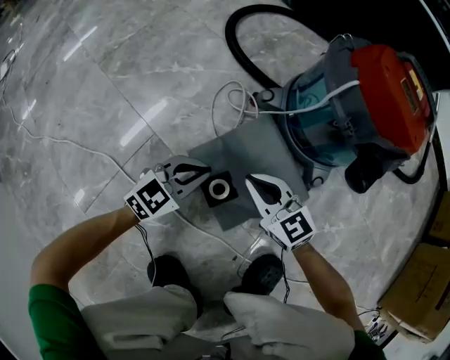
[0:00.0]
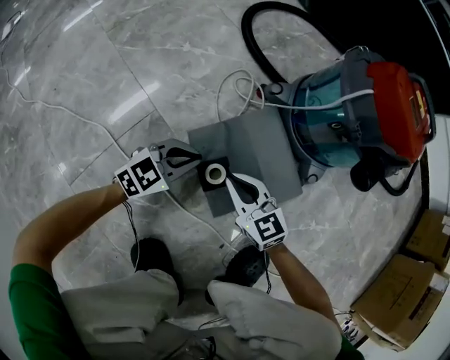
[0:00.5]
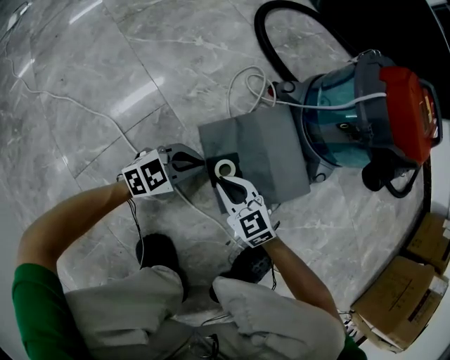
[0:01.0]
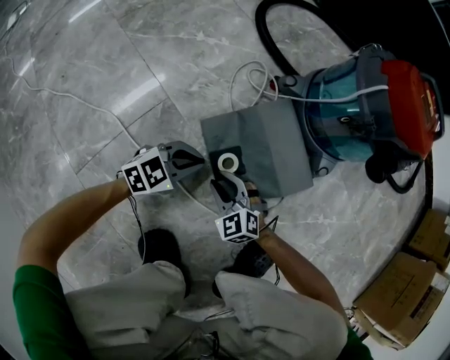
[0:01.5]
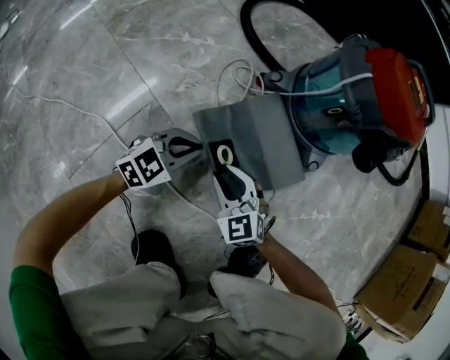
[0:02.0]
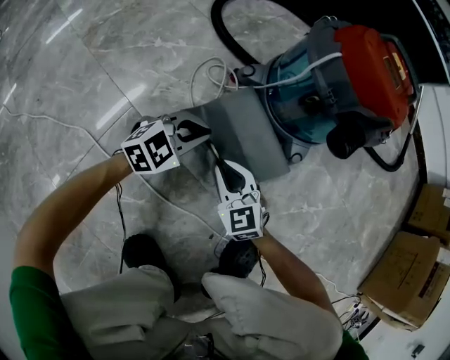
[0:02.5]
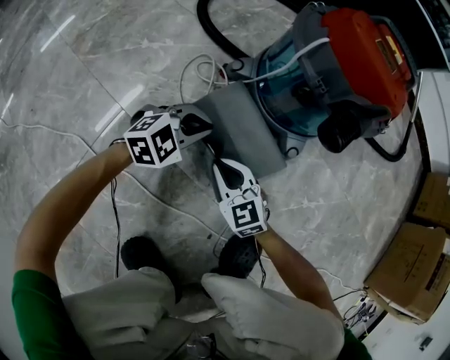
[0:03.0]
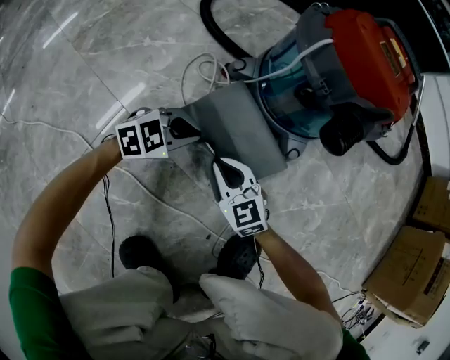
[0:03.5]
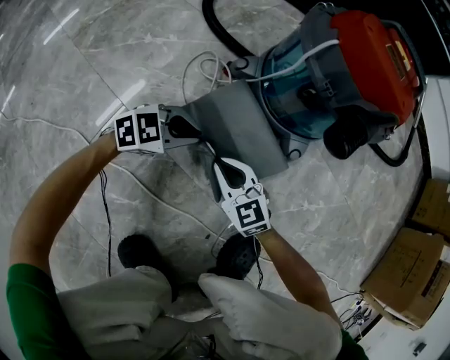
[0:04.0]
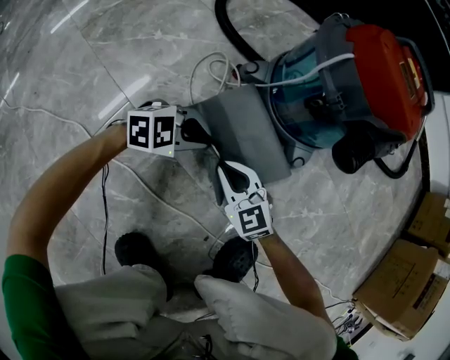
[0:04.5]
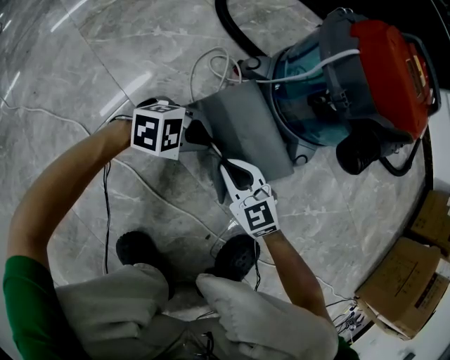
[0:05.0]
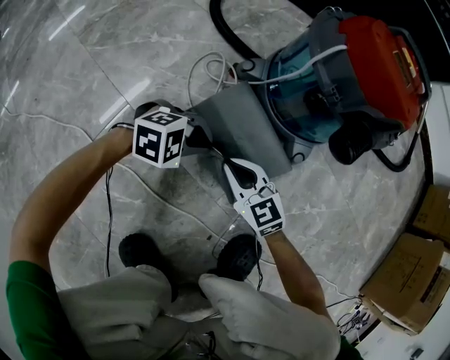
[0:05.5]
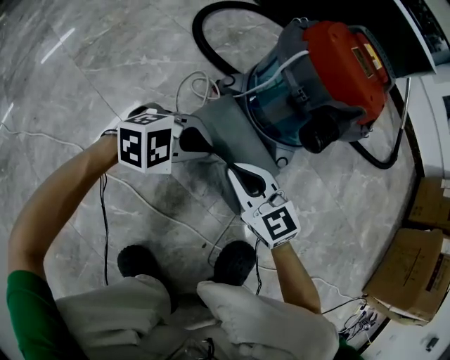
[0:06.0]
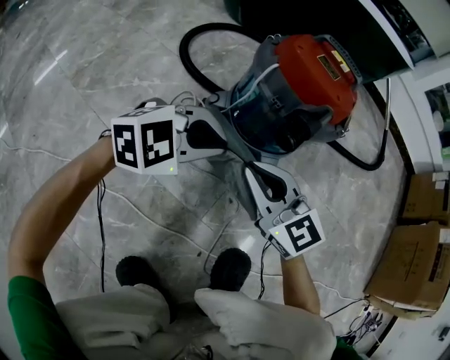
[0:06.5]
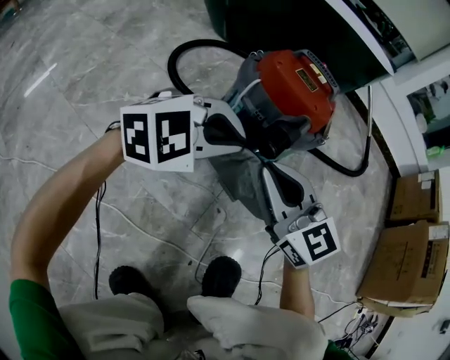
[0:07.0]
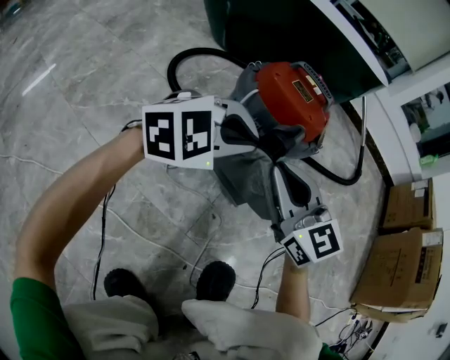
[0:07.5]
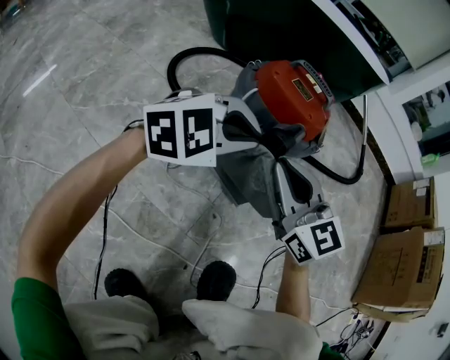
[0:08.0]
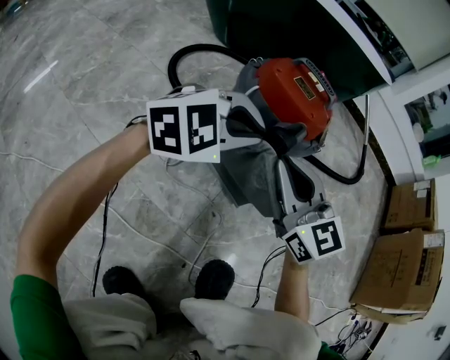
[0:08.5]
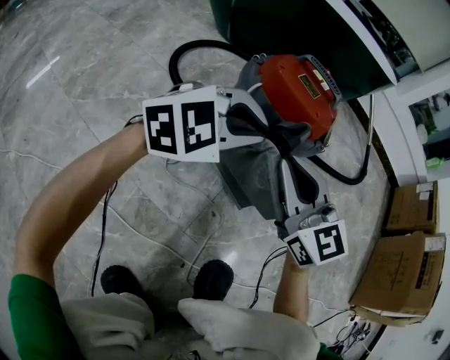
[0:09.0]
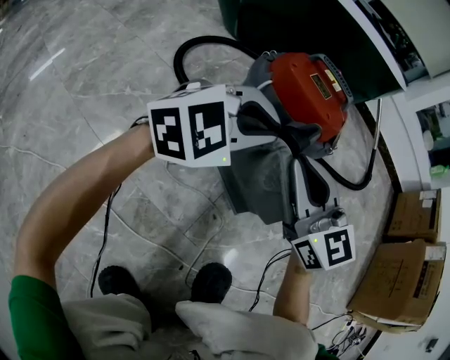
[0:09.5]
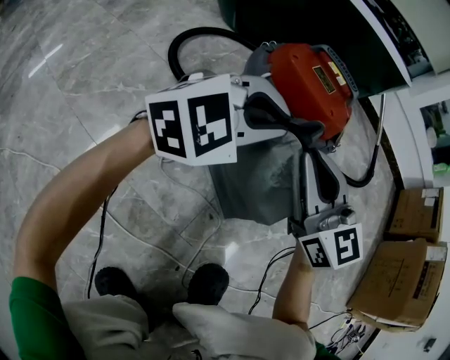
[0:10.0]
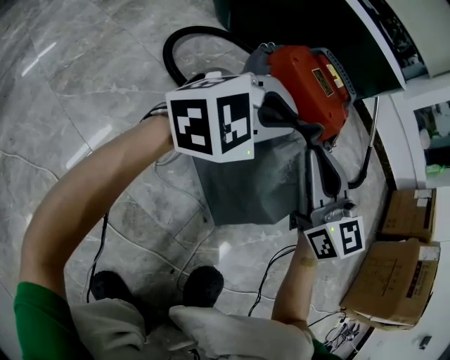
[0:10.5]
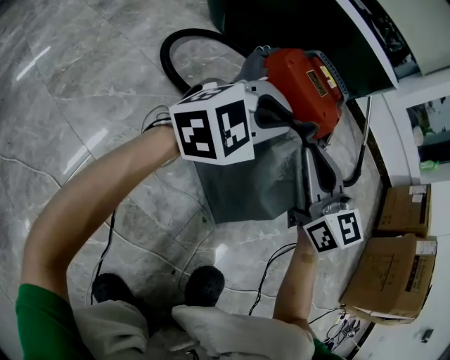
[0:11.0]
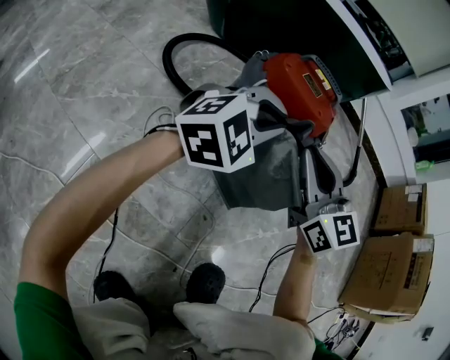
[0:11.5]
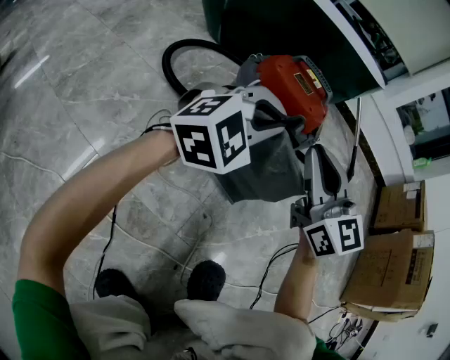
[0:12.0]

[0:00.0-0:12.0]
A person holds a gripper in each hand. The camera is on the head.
0:00.0 to 0:02.0: The right gripper rotates roughly 20 degrees, and opens.
0:02.0 to 0:04.0: The right gripper moves roughly 10 cm, and closes. The left gripper changes place by about 10 cm, and swivels about 20 degrees.
0:04.0 to 0:06.0: Both grippers travel together upward, approximately 10 cm. The left gripper rotates roughly 20 degrees.
0:06.0 to 0:08.0: Both grippers travel together upward, roughly 20 cm. The right gripper changes its angle by about 20 degrees, while the left gripper changes its angle by roughly 20 degrees.
0:08.0 to 0:10.0: The left gripper changes place by some 5 cm; the right gripper moves approximately 5 cm.
0:10.0 to 0:12.0: The right gripper moves some 5 cm.

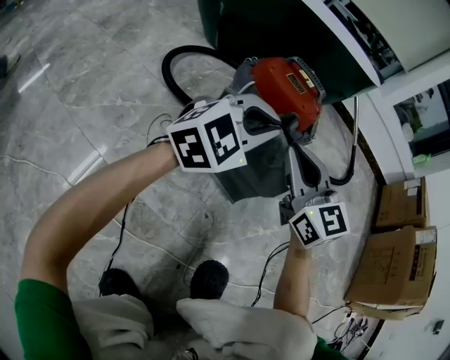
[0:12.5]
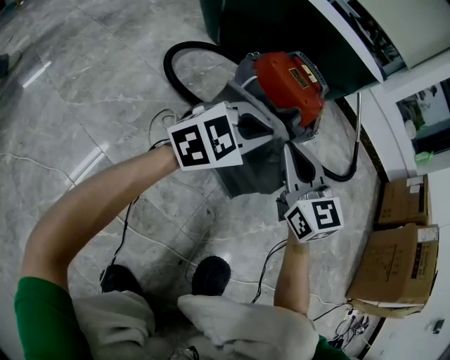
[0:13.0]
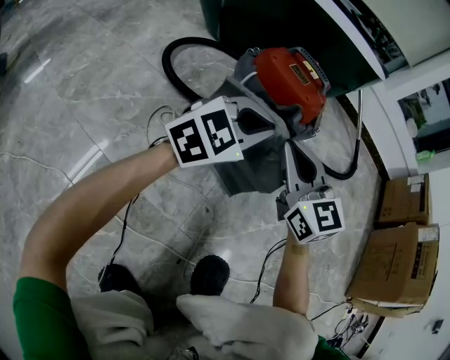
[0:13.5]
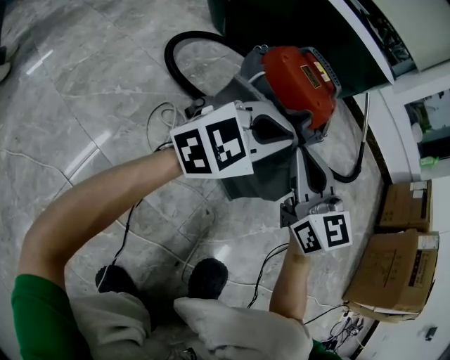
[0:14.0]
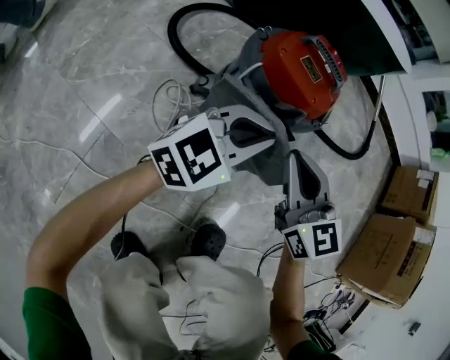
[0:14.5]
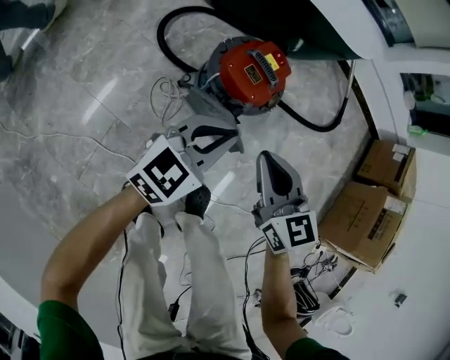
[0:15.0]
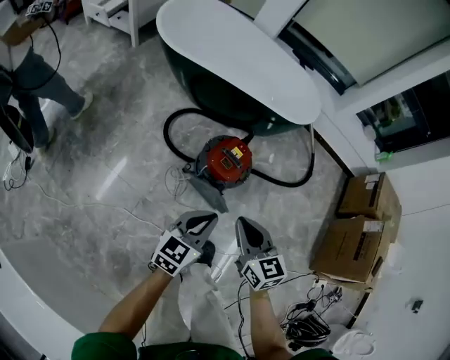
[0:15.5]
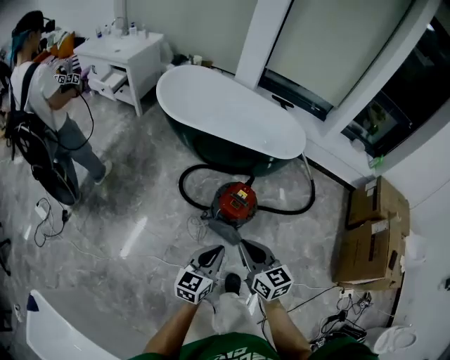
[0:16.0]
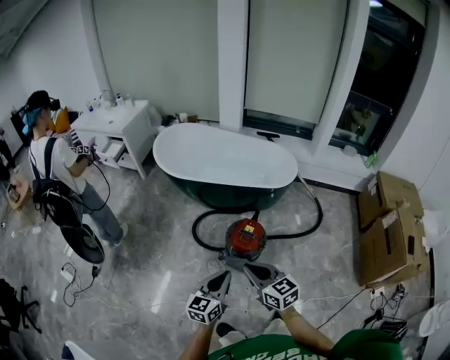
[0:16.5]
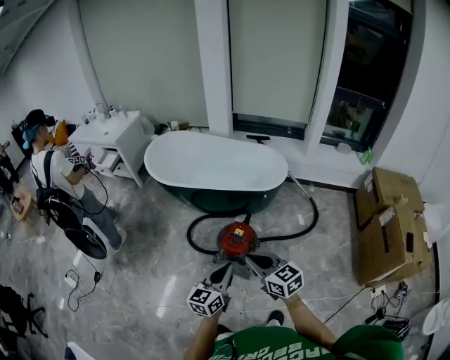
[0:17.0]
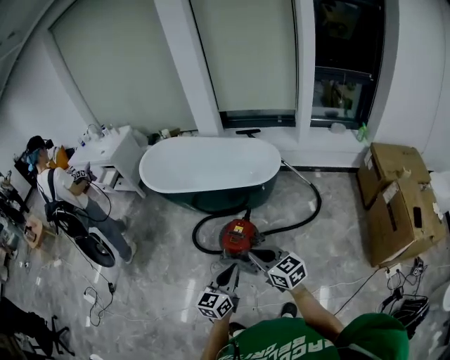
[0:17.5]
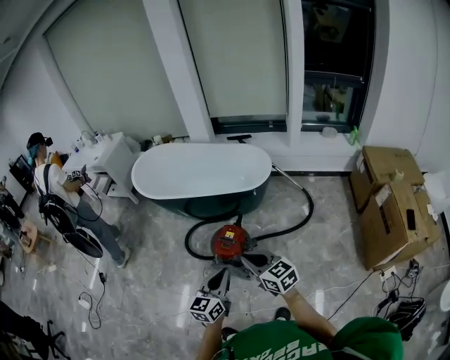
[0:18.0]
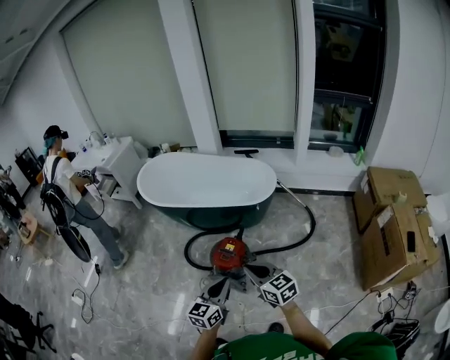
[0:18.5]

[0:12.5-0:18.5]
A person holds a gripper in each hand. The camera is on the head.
0:12.5 to 0:14.5: There are only small adjustments of the grippers.
0:14.5 to 0:16.5: The grippers both shift upward by some 60 cm. The left gripper turns by approximately 30 degrees.
0:16.5 to 0:18.5: The grippers both shift to the right by roughly 20 cm.

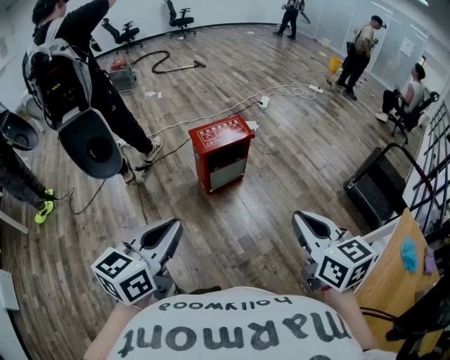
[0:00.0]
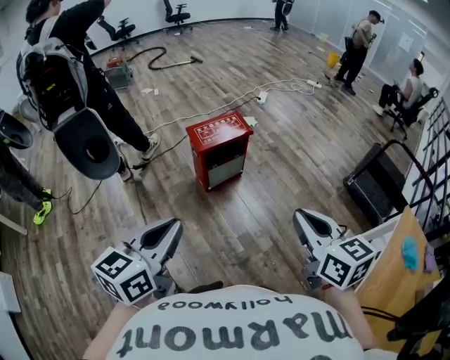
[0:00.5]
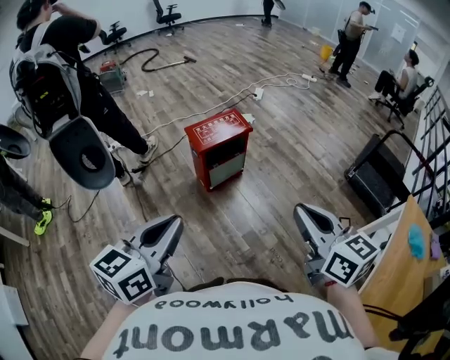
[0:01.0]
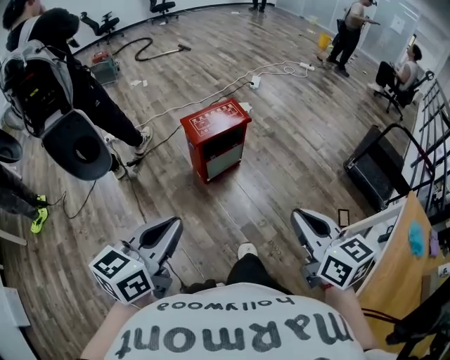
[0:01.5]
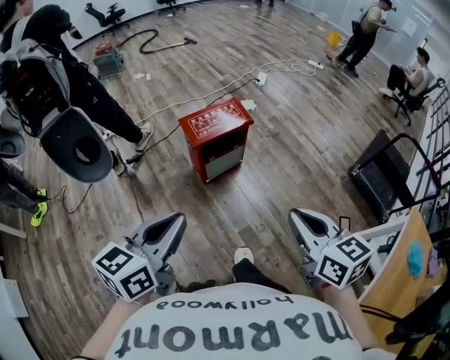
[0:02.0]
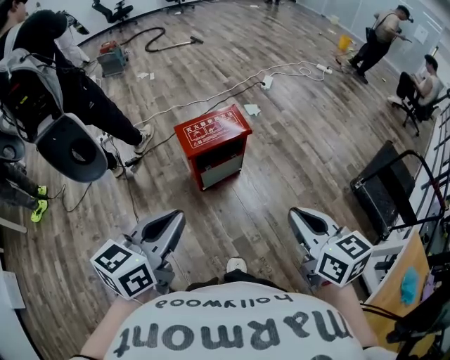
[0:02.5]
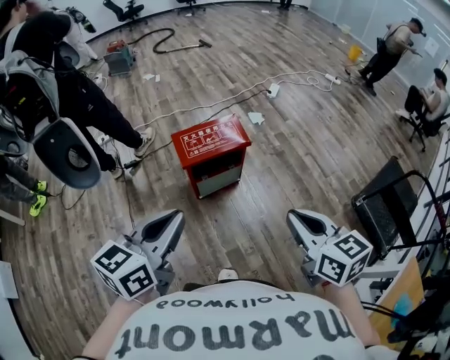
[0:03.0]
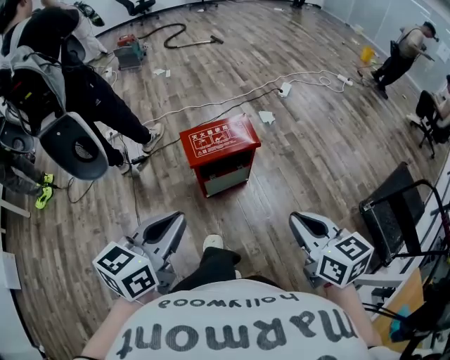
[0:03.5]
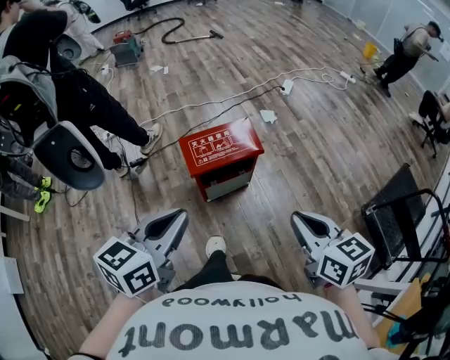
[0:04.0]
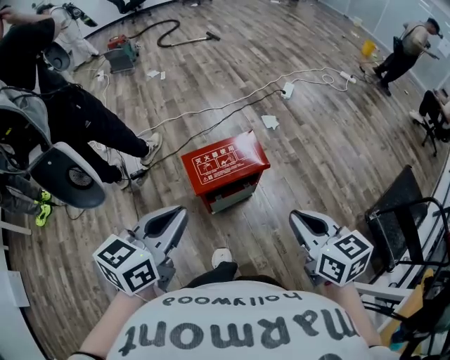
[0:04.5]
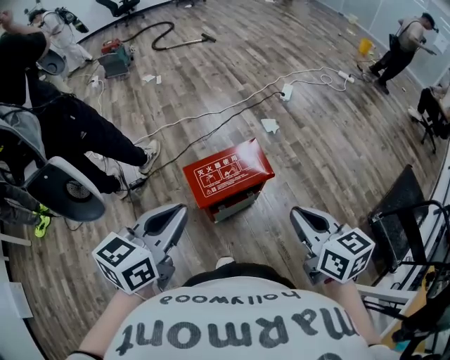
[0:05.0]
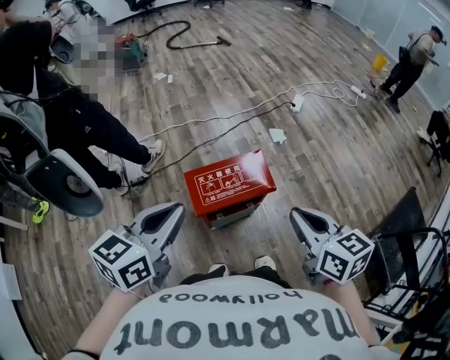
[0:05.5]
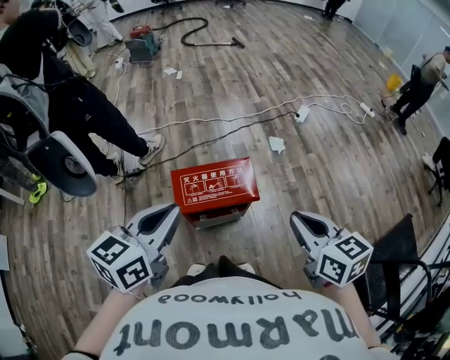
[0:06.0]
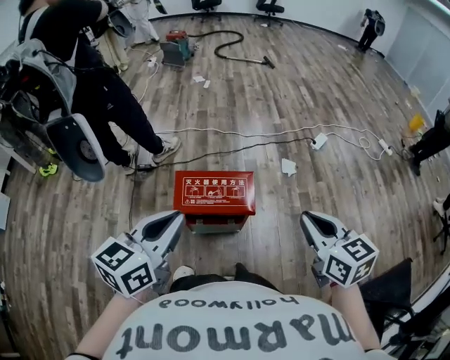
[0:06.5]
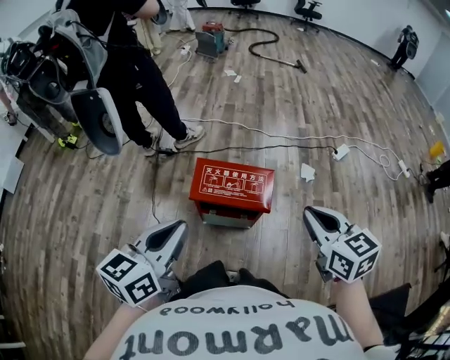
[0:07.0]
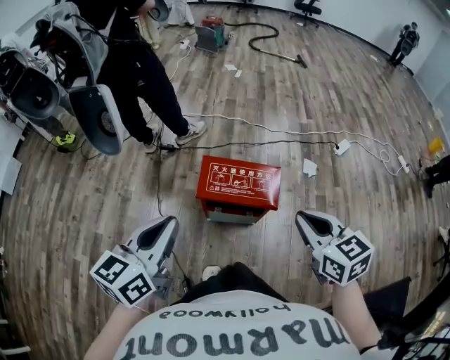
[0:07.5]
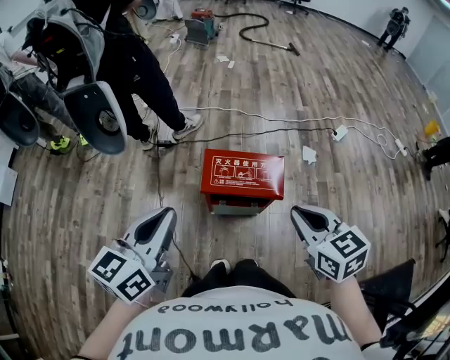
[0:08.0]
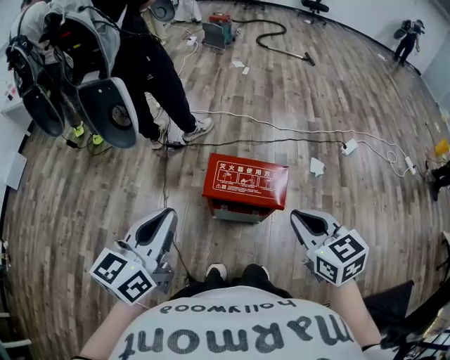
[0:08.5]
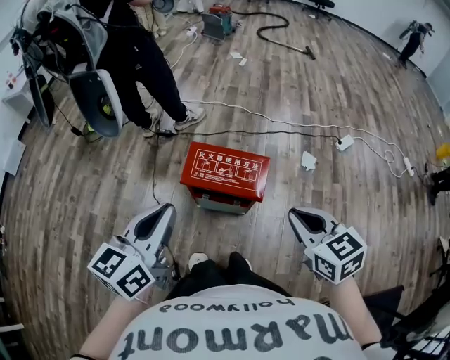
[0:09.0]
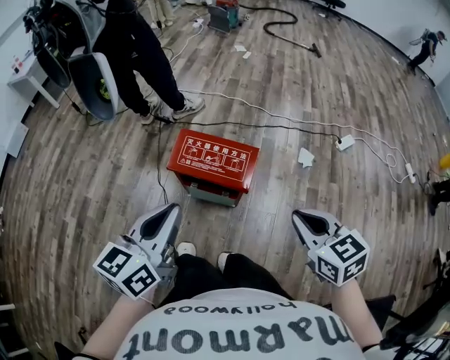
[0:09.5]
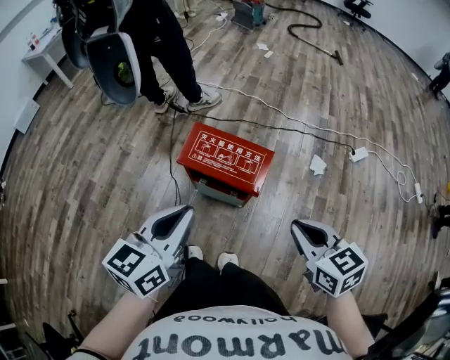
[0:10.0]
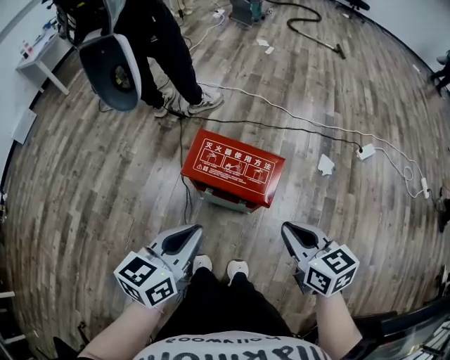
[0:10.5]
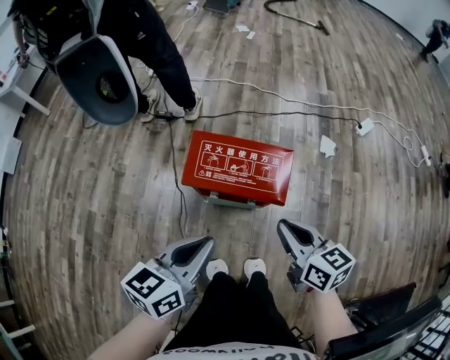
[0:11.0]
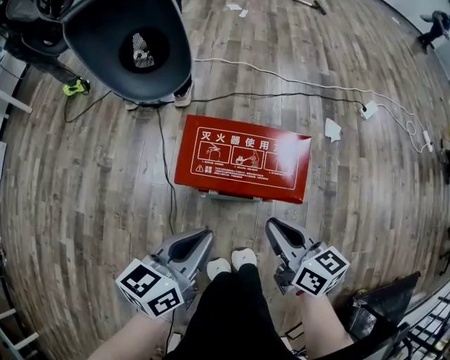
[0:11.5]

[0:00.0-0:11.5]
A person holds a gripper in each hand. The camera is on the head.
0:00.0 to 0:02.0: The left gripper is displaced forward by about 10 cm. The right gripper goes about 10 cm forward and downward.
0:02.0 to 0:04.0: Both grippers travel together forward, some 20 cm.
0:04.0 to 0:06.0: Both grippers travel together forward, about 20 cm.
0:06.0 to 0:07.5: The right gripper goes to the right and returns, approximately 5 cm each way, and turns by roughly 20 degrees; the left gripper is displaced backward by about 10 cm, and swivels roughly 30 degrees.
0:07.5 to 0:09.5: Both grippers travel together to the right, approximately 15 cm.
0:09.5 to 0:11.5: The right gripper is displaced downward and to the left by roughly 30 cm, and swivels roughly 40 degrees, while the left gripper shifts roughly 25 cm downward, and swivels about 20 degrees.
